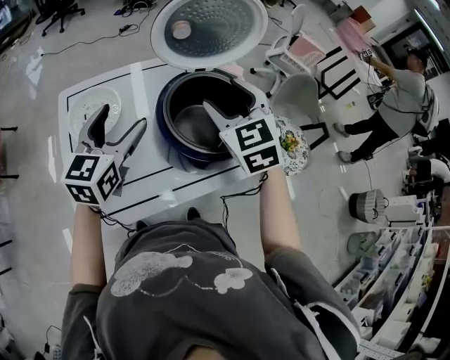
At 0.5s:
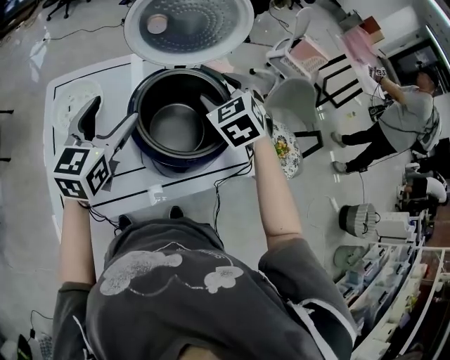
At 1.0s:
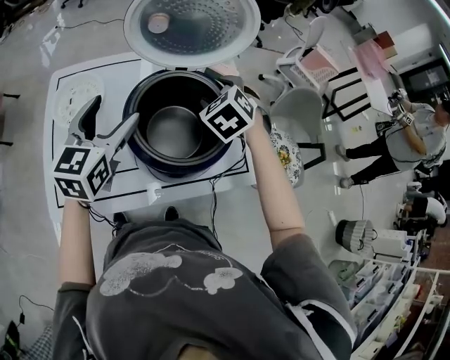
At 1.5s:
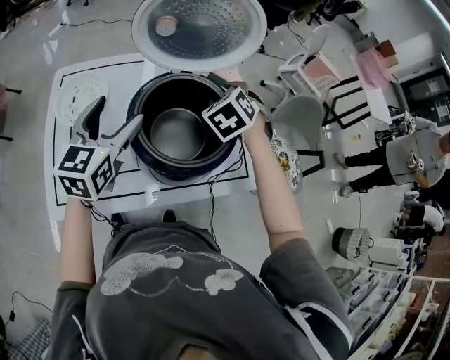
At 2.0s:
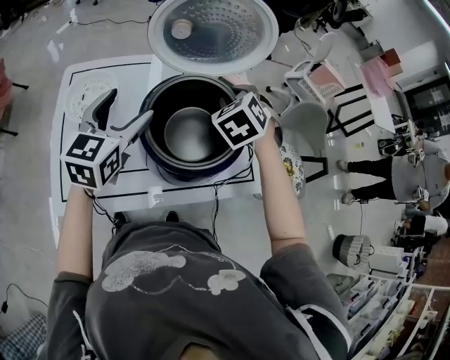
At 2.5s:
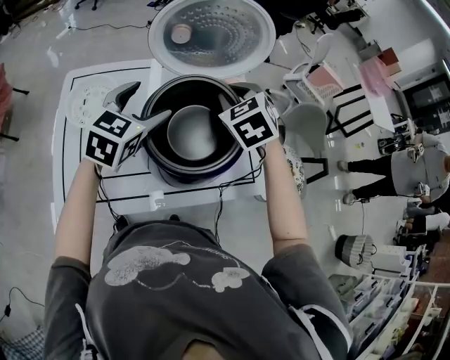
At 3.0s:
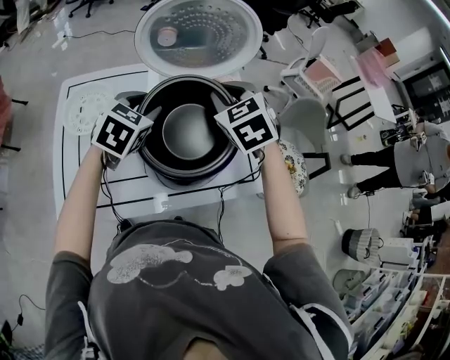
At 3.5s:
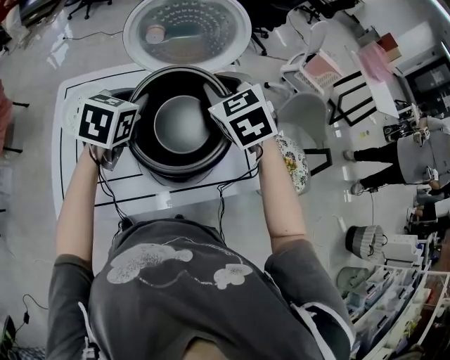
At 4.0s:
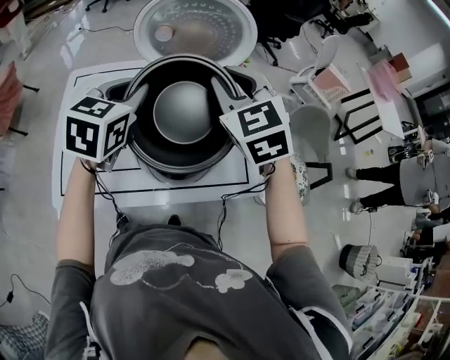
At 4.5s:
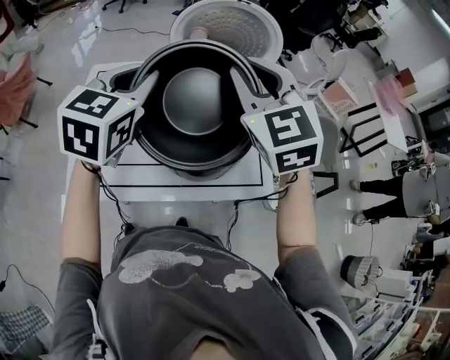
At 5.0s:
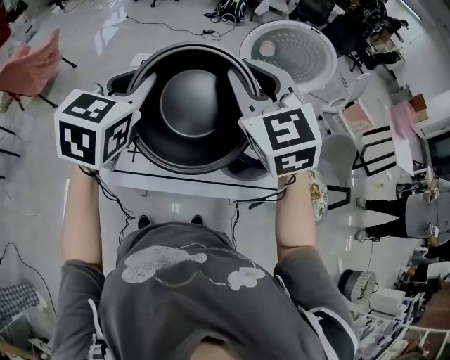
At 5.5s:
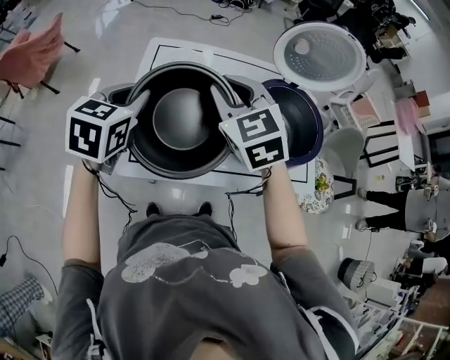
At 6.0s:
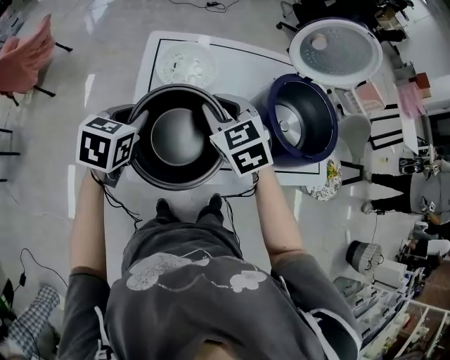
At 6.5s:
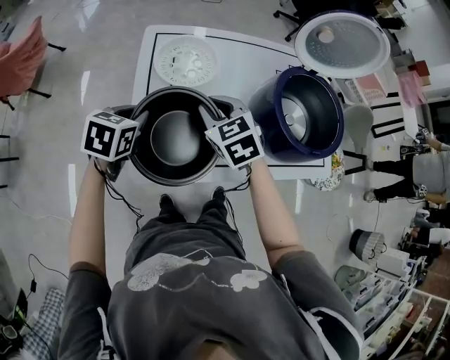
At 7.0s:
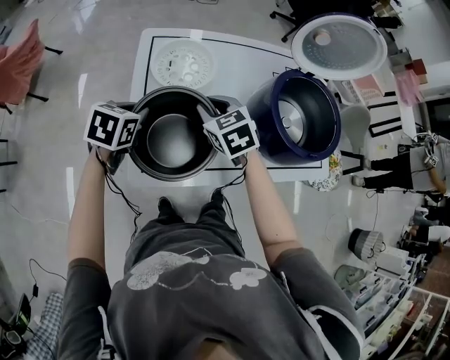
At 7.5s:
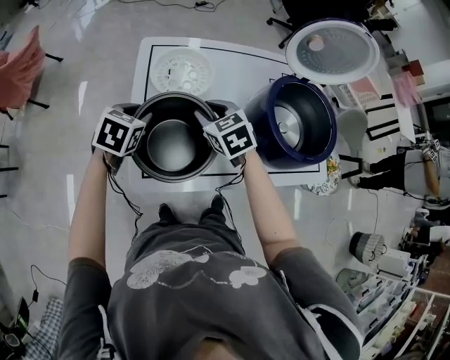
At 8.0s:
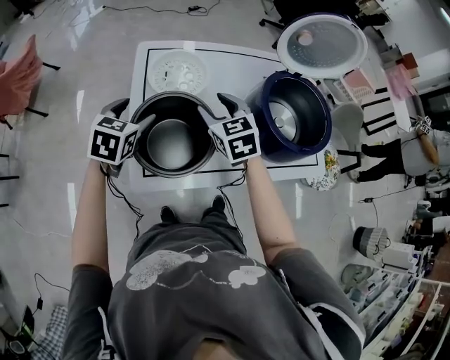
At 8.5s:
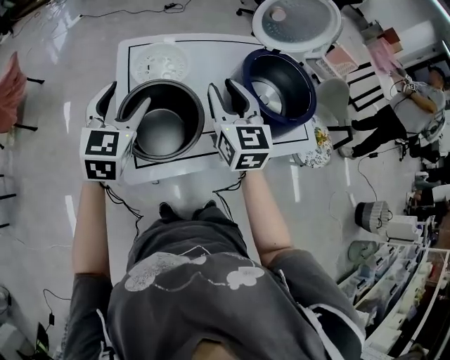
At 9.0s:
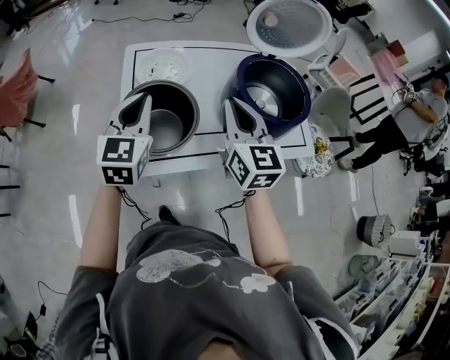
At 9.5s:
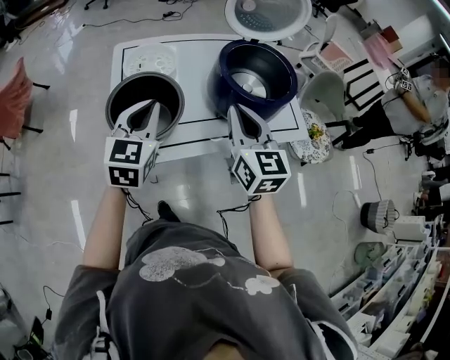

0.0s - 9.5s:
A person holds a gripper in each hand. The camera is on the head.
0.0s - 2.0s: The left gripper shifts roughly 5 cm to the right. The right gripper shifts approximately 15 cm forward, downward and to the right, turns by approximately 30 degrees, and closes up.
2.0s - 4.0s: The left gripper travels to the right by roughly 5 cm, and closes. Meanwhile the right gripper heads upward, covering some 15 cm, and swivels some 30 degrees.
4.0s - 5.5s: Both grippers move to the left, about 35 cm.
5.5s - 7.5s: Both grippers travel together downward, approximately 20 cm. The right gripper changes its angle by some 20 degrees.
7.5s - 9.5s: The right gripper travels backward, to the right and upward by about 30 cm, and points its fingers about 40 degrees further upward, while the left gripper moves upward, to the right and backward, roughly 25 cm, points its fingers some 30 degrees further upward, and opens, then closes again.

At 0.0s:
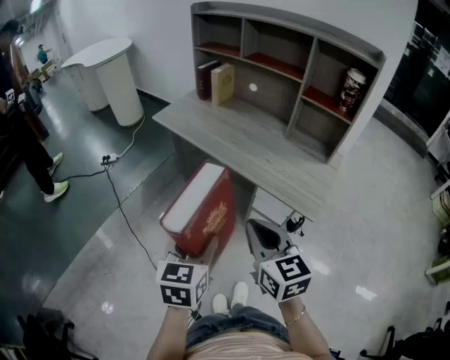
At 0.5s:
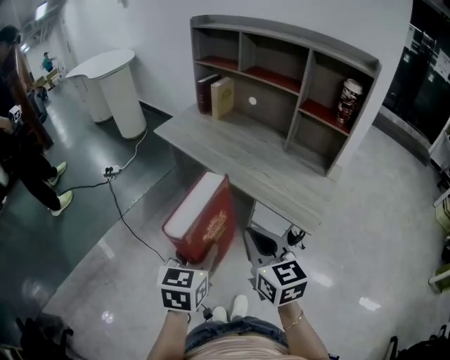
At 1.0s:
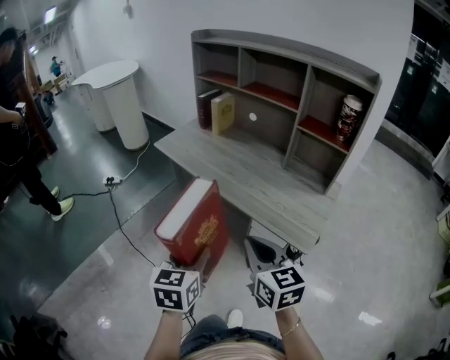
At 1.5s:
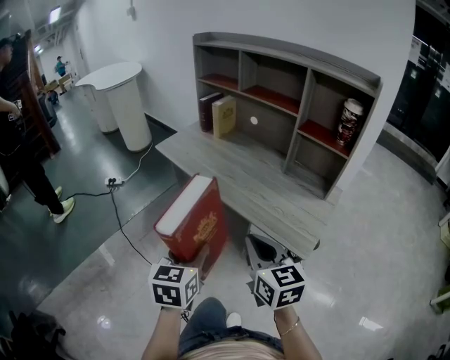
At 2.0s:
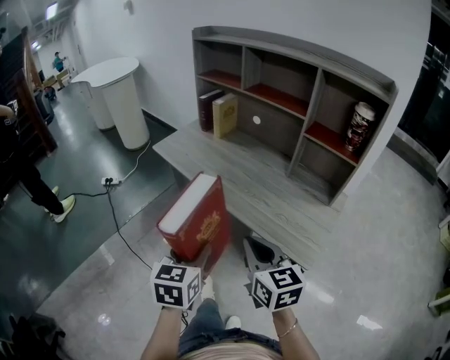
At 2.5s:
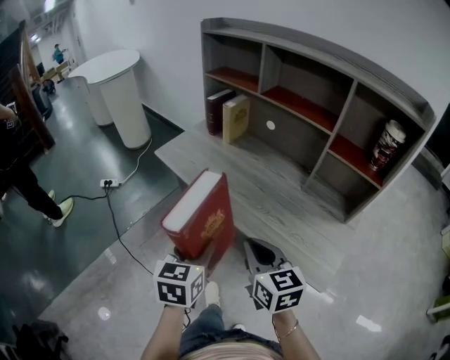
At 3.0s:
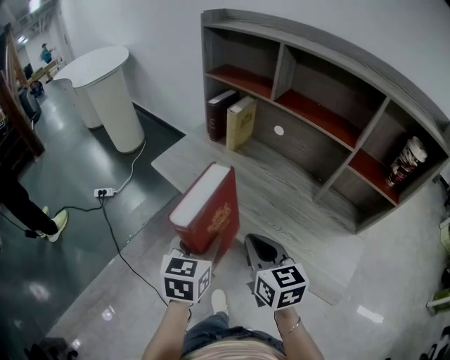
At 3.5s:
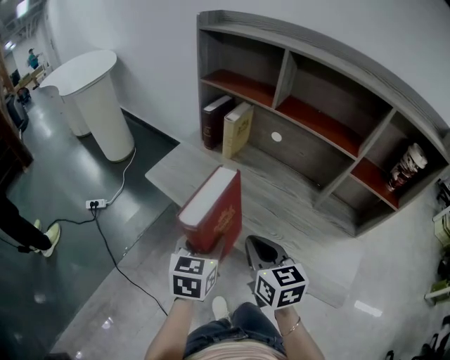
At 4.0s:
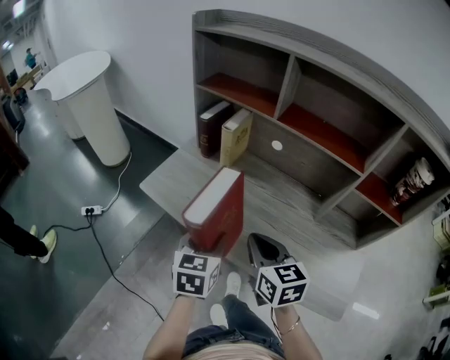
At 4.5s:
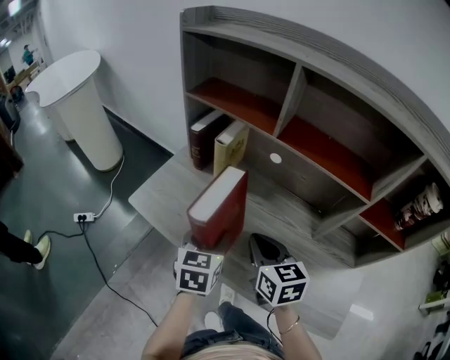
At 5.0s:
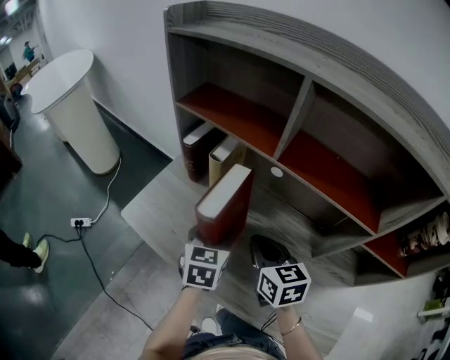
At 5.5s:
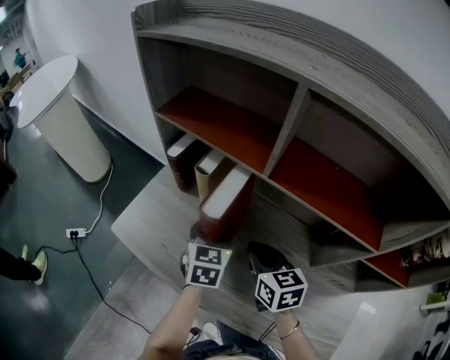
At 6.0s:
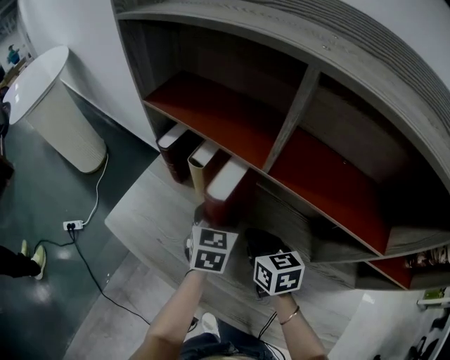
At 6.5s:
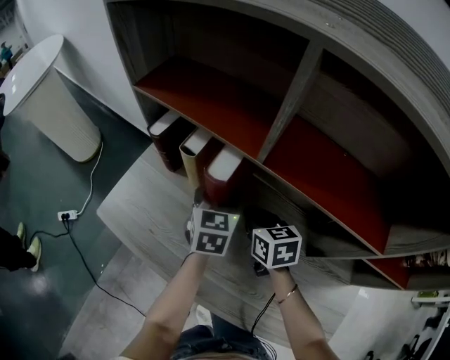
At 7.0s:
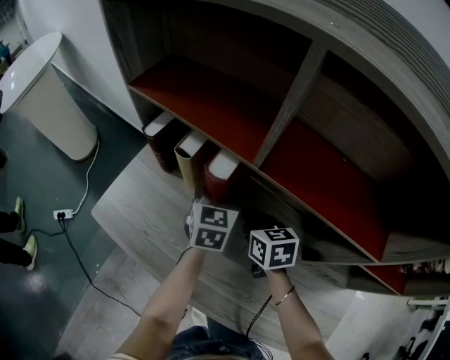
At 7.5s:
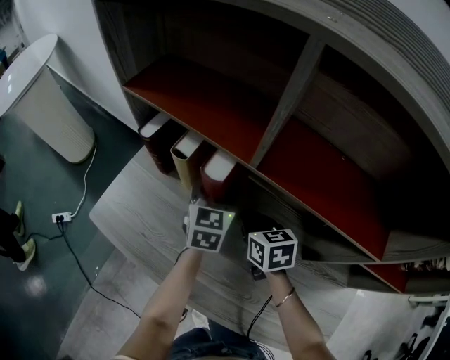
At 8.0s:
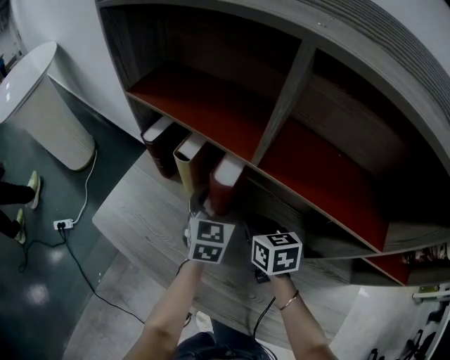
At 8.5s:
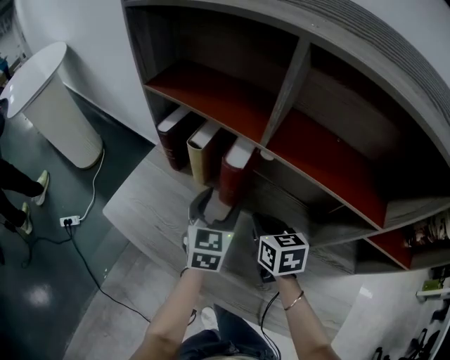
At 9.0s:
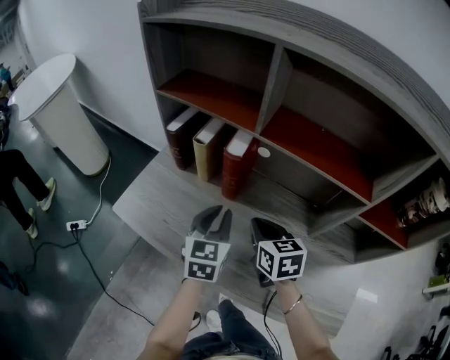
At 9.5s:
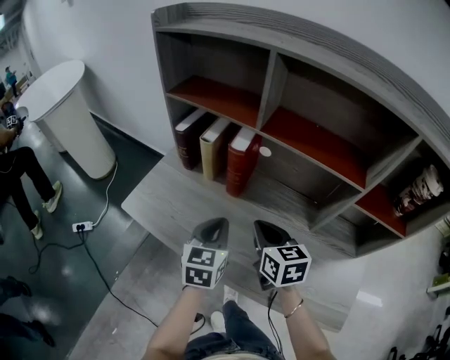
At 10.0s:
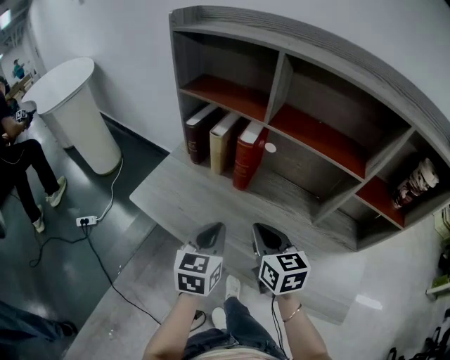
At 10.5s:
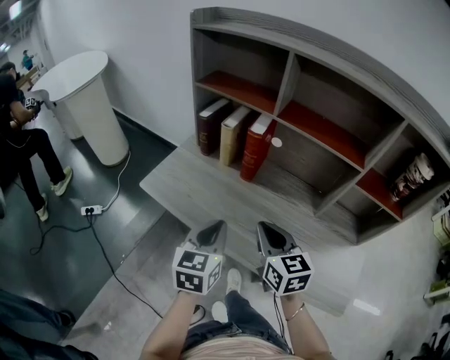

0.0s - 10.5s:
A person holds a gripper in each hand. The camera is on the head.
0.0s - 2.0s: The grippers both shift forward by about 10 cm.
2.0s - 4.0s: Both grippers move forward, roughly 30 cm.
4.0s - 6.5s: The left gripper moves forward and to the right, some 35 cm. The right gripper heads forward and downward, covering roughly 30 cm.
6.5s - 8.5s: The right gripper moves approximately 5 cm, while the left gripper travels backward by some 5 cm.
8.5s - 10.5s: The left gripper is displaced backward by about 25 cm, and closes up. Meanwhile the right gripper is displaced backward and upward by about 20 cm.

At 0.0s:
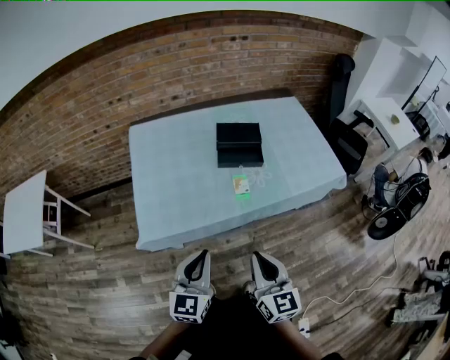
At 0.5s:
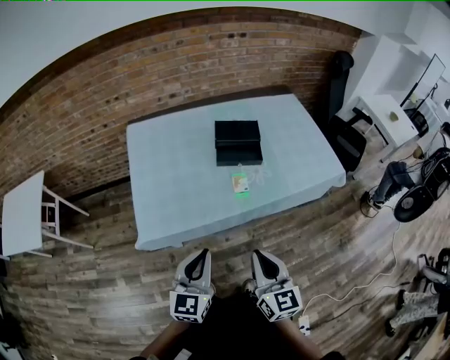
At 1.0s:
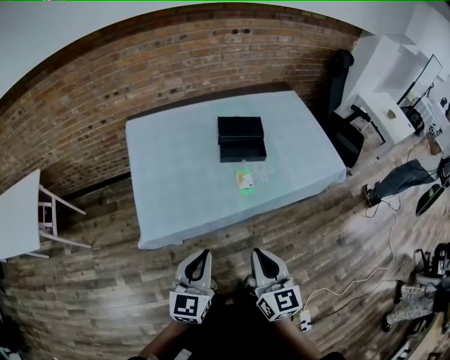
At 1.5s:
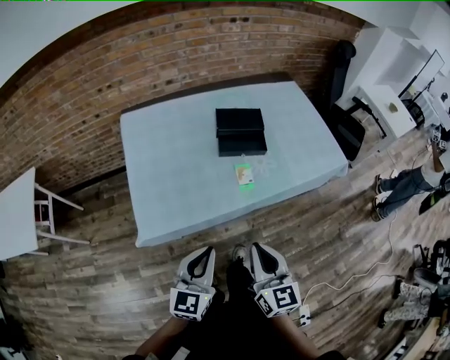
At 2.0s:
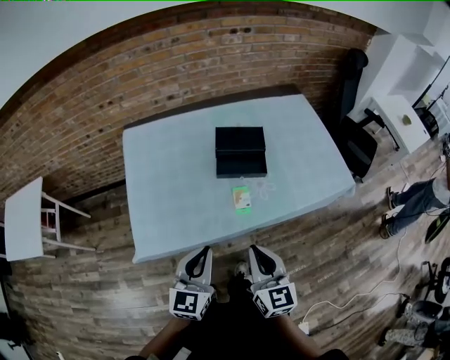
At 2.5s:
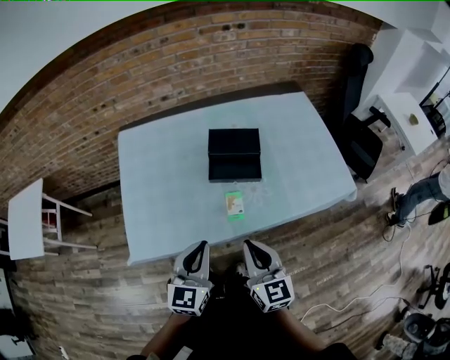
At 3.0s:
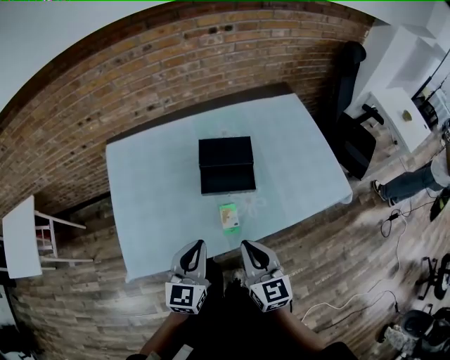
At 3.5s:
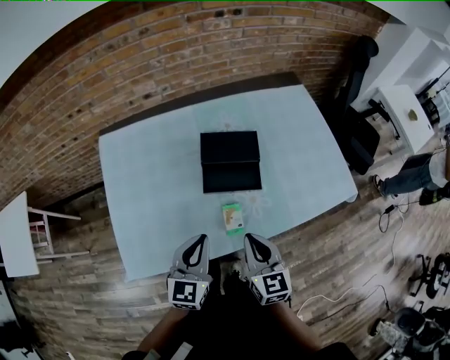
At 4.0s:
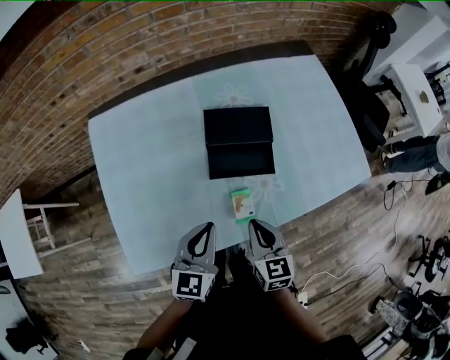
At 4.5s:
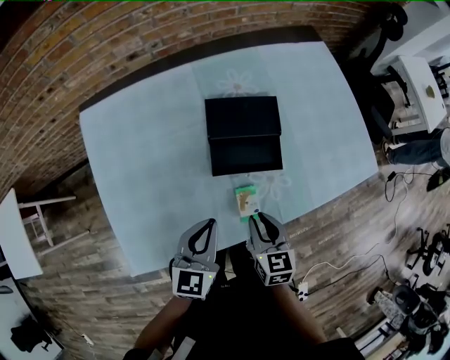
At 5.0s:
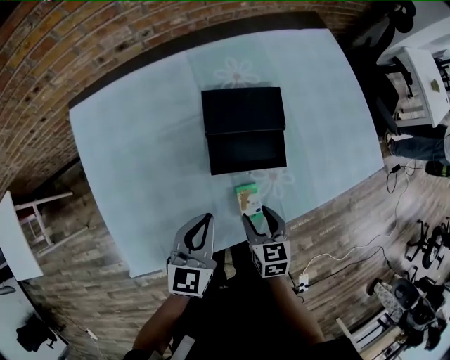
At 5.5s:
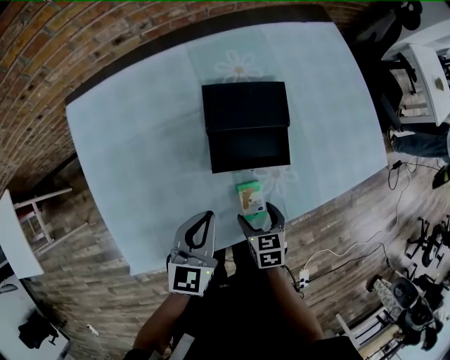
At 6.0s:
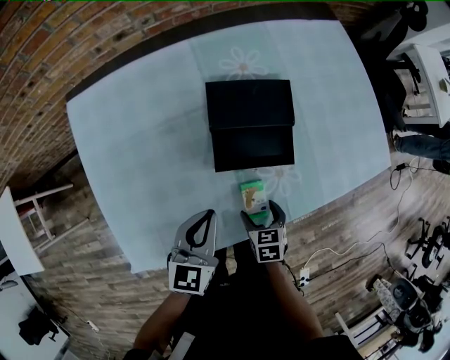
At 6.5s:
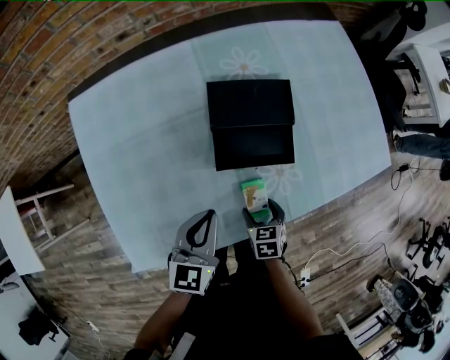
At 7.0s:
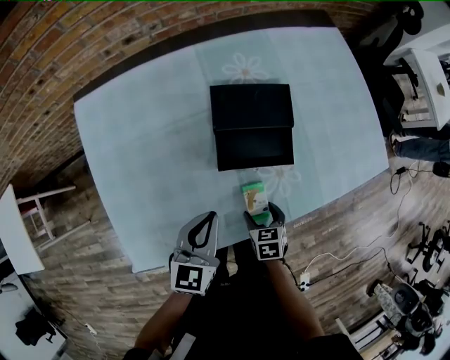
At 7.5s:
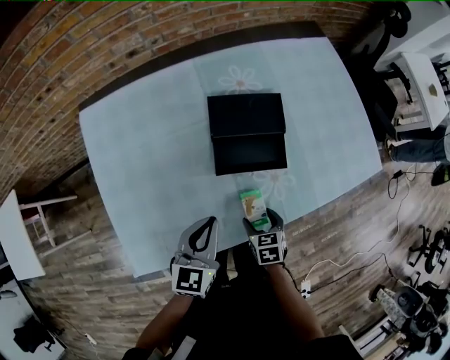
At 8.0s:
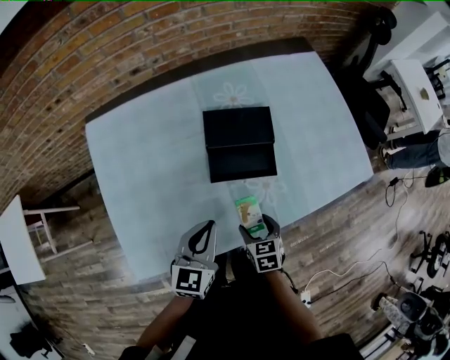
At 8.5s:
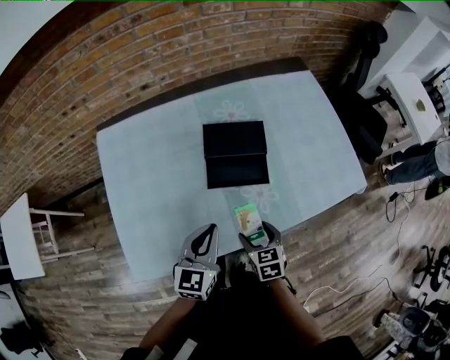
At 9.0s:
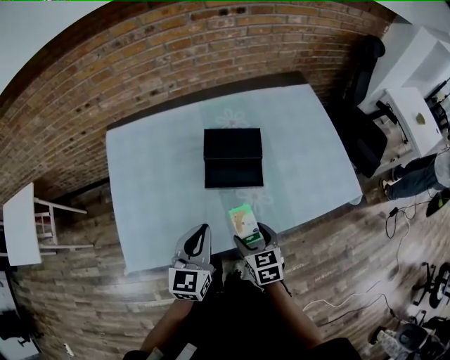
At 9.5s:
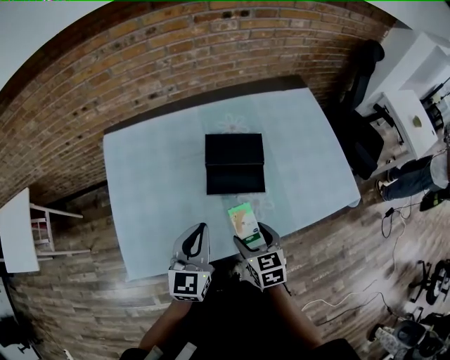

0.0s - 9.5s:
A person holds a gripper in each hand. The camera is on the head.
0.0s - 2.0s: Both grippers travel together forward, approximately 10 cm.
2.0s - 4.0s: Both grippers travel together forward and downward, about 25 cm. The right gripper rotates some 20 degrees.
4.0s - 5.5s: The left gripper moves downward, approximately 5 cm. Meanwhile the right gripper heads downward, covering about 15 cm, turns by some 30 degrees, and opens.
5.5s - 7.5s: The grippers move only a little.
7.5s - 9.5s: The left gripper heads upward, covering some 10 cm; the right gripper travels upward by approximately 20 cm, and turns by some 20 degrees.
